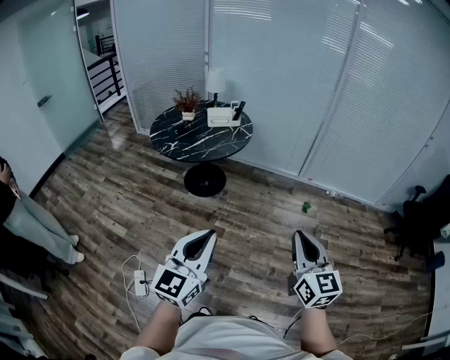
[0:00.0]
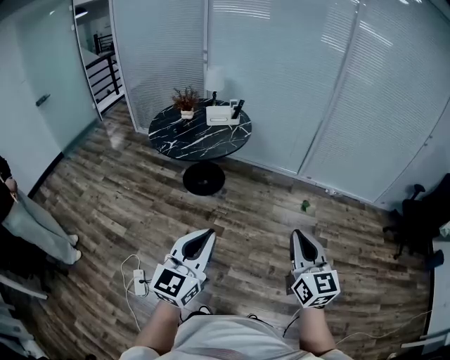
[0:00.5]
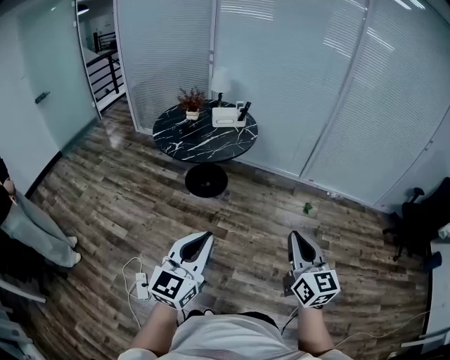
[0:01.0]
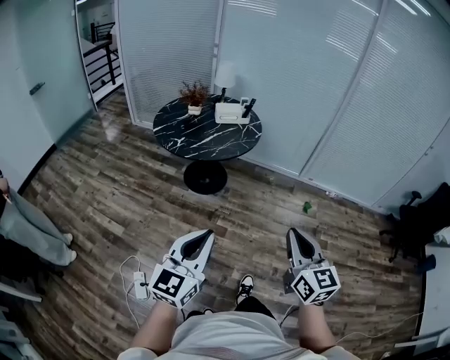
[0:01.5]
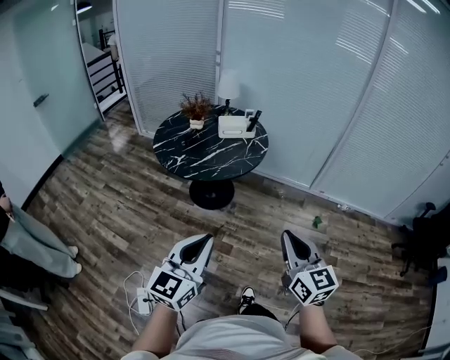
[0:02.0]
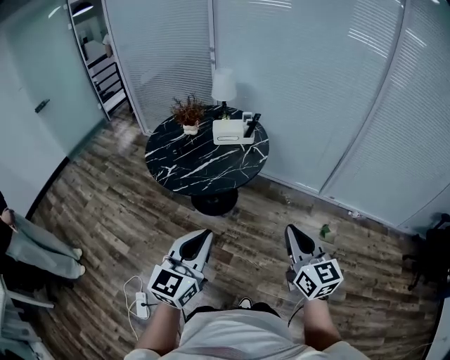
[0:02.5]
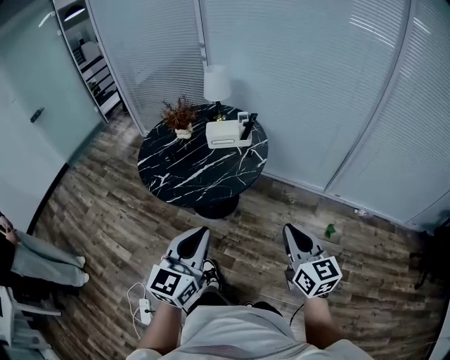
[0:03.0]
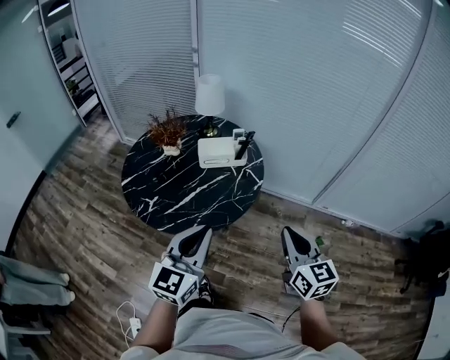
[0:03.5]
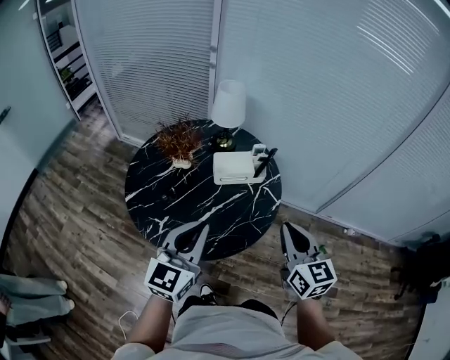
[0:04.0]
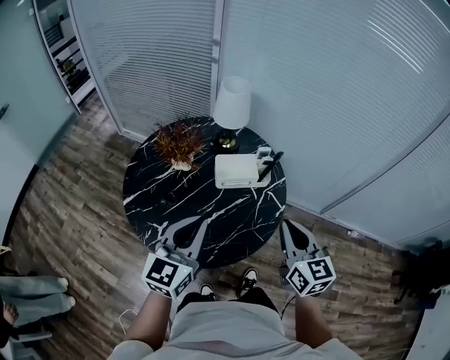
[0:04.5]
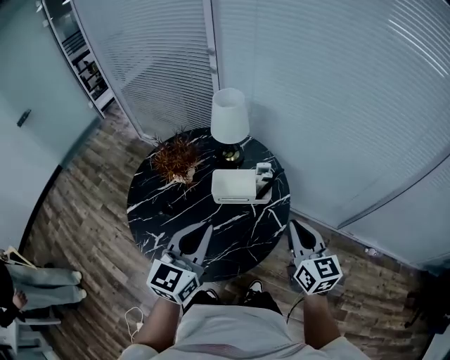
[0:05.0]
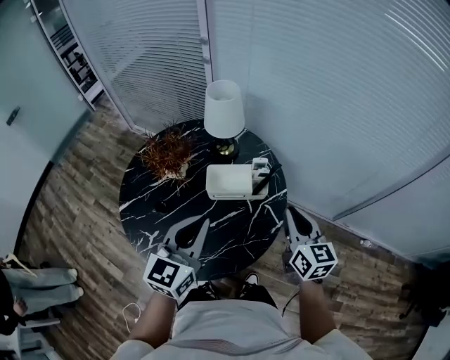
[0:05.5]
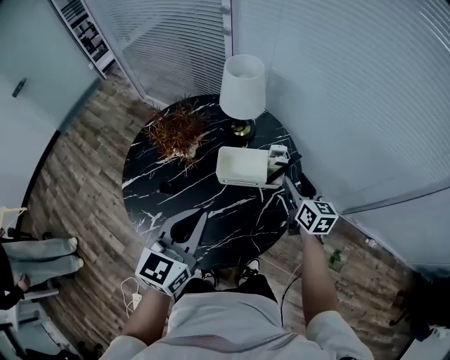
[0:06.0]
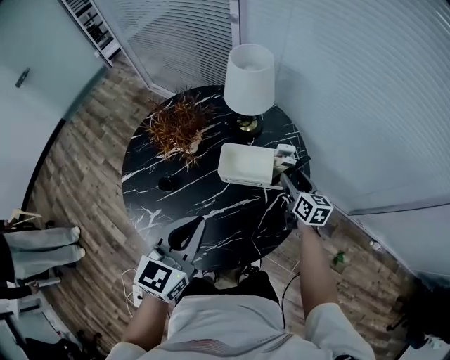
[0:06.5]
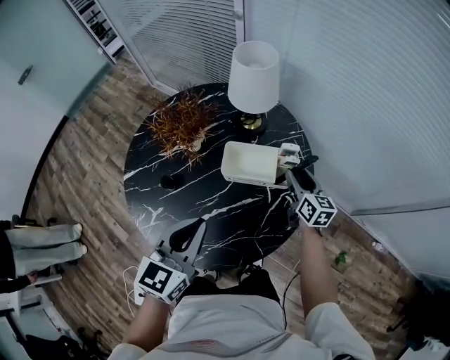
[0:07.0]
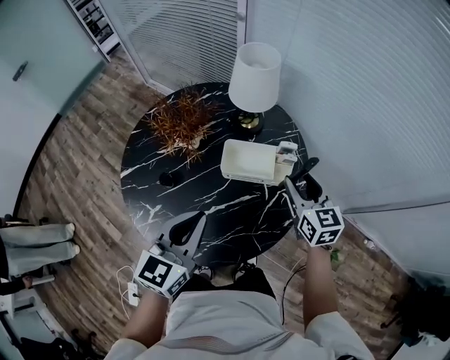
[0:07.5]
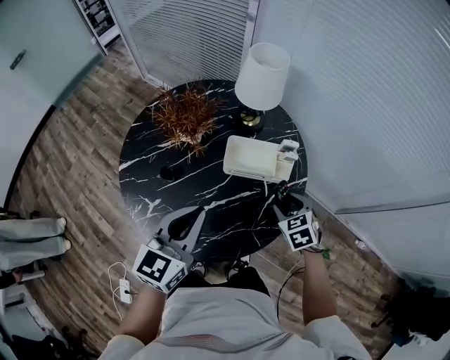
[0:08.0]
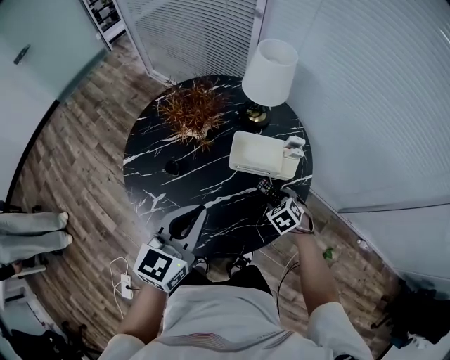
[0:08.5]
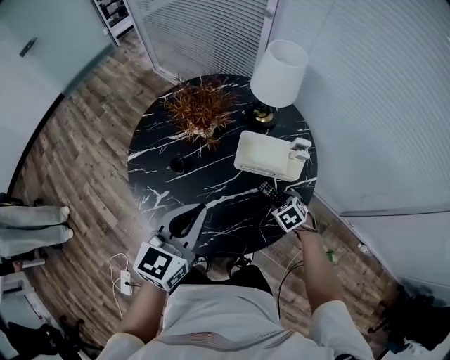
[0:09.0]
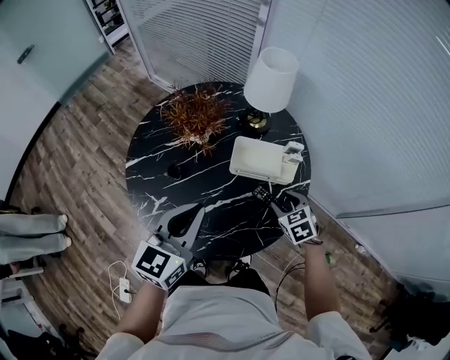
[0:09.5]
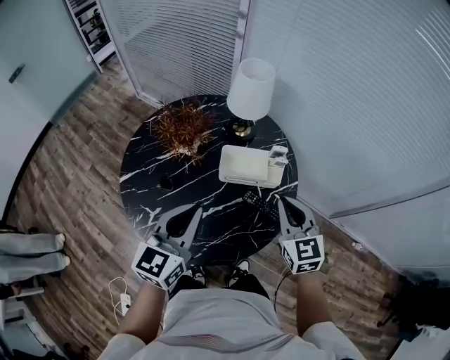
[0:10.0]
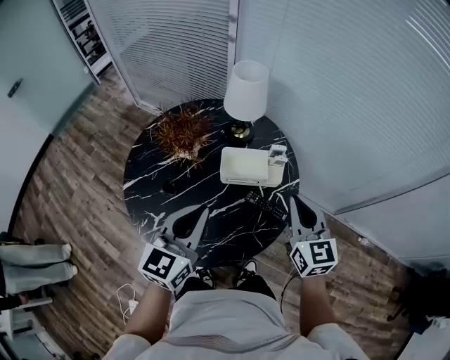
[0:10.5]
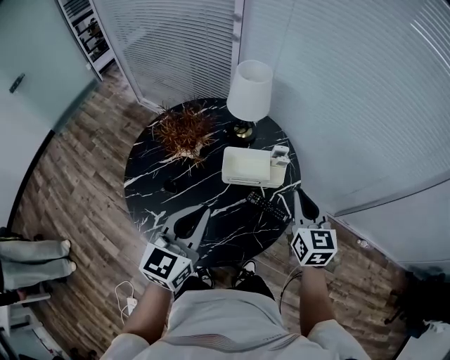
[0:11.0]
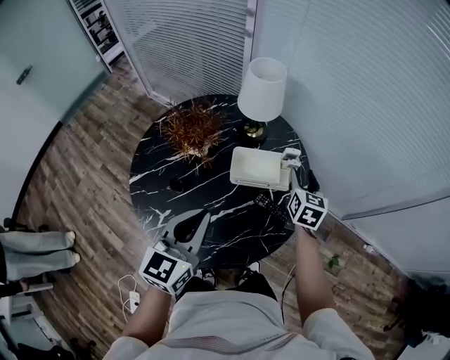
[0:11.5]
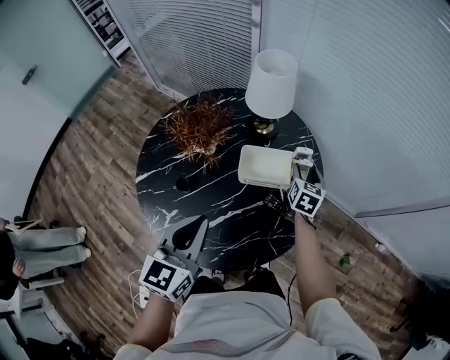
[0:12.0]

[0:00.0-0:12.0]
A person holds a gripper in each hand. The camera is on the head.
0:00.0 to 0:02.0: The grippers both shift forward and to the left by roughly 20 cm.
0:02.0 to 0:04.0: Both grippers are carried forward, approximately 50 cm.
0:04.0 to 0:06.0: The right gripper shifts roughly 35 cm forward and downward, and opens, while the left gripper heads forward, covering roughly 15 cm.
0:06.0 to 0:08.0: The right gripper is displaced backward and downward by roughly 10 cm, and angles its fingers downward, by some 30 degrees.
0:08.0 to 0:10.0: The right gripper shifts some 15 cm upward, tips its fingers upward by approximately 30 degrees, and closes its fingers.
0:10.0 to 0:12.0: The right gripper shifts some 25 cm forward and downward, rotates approximately 40 degrees, and opens its fingers.

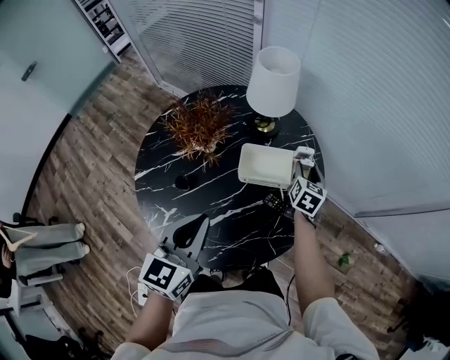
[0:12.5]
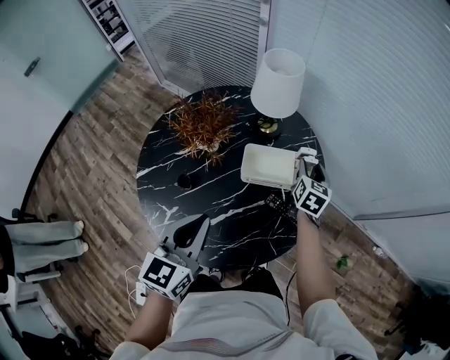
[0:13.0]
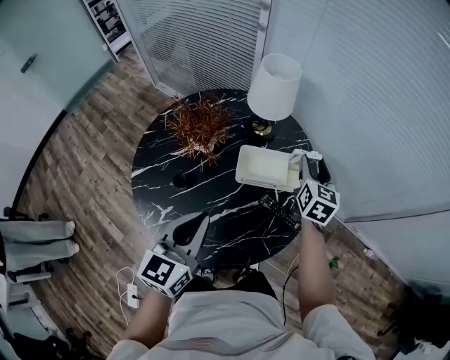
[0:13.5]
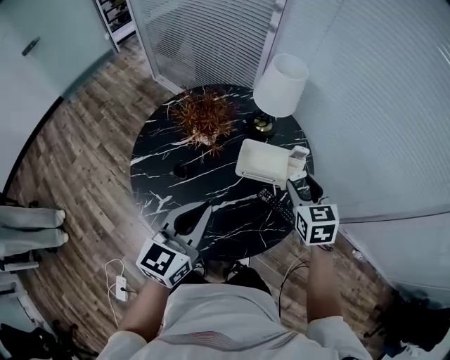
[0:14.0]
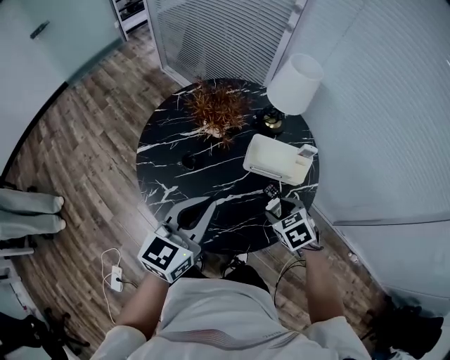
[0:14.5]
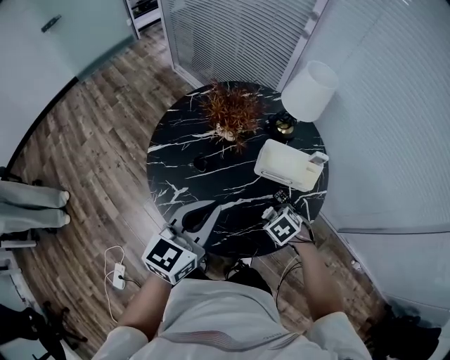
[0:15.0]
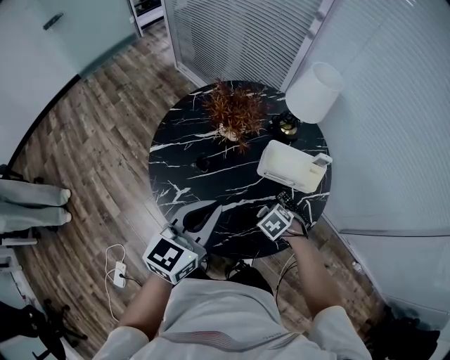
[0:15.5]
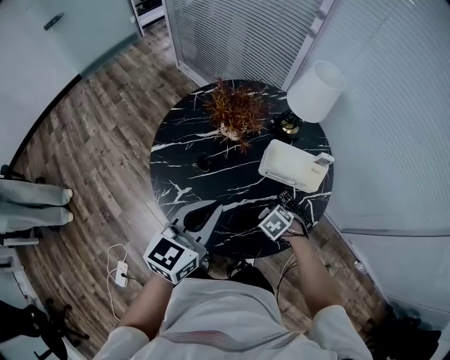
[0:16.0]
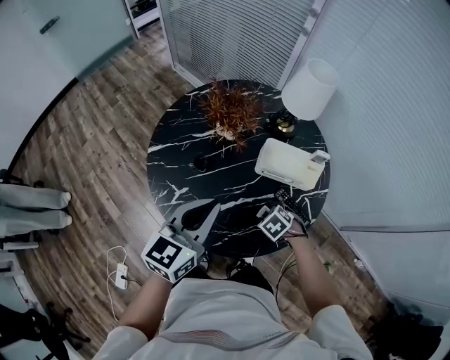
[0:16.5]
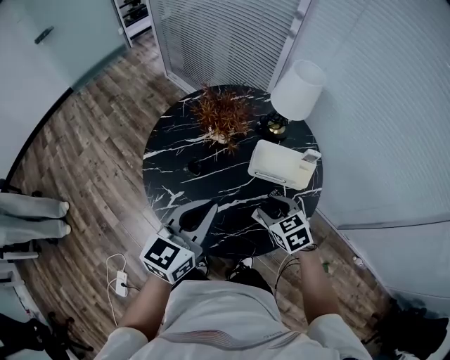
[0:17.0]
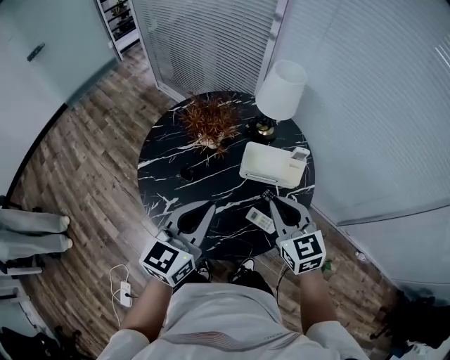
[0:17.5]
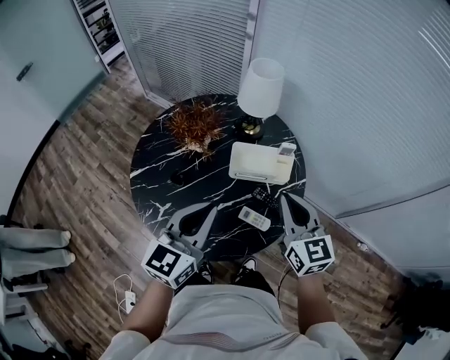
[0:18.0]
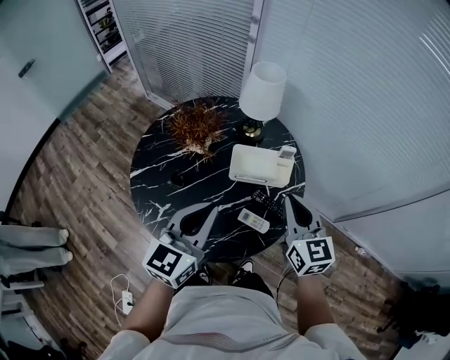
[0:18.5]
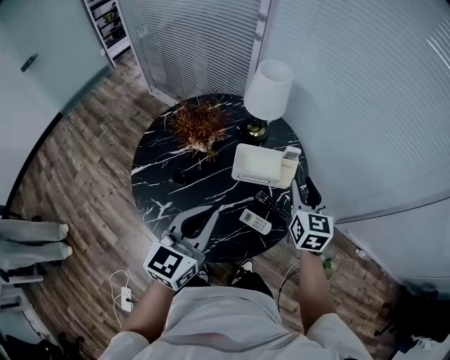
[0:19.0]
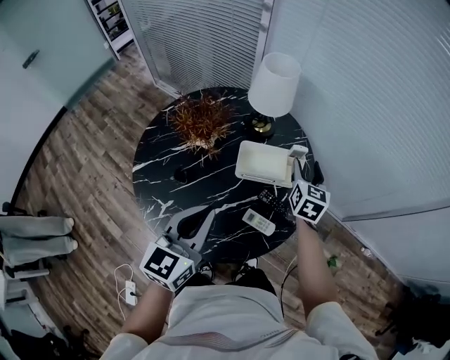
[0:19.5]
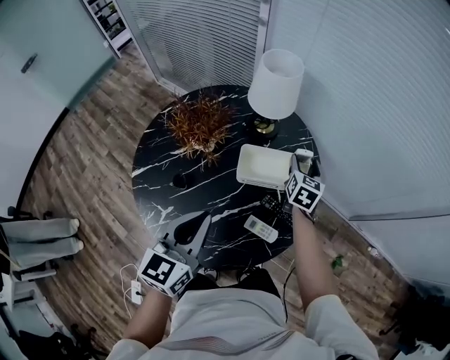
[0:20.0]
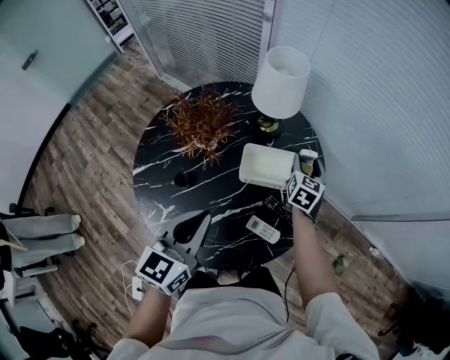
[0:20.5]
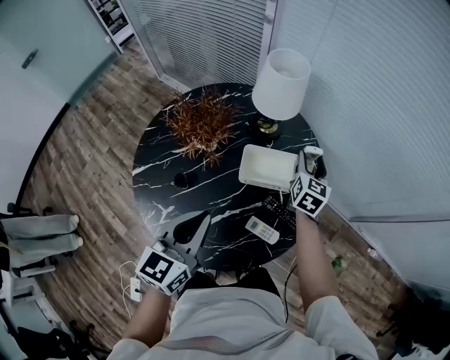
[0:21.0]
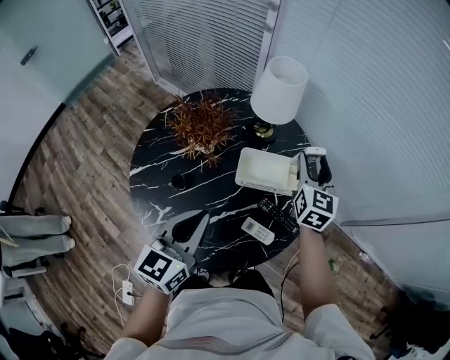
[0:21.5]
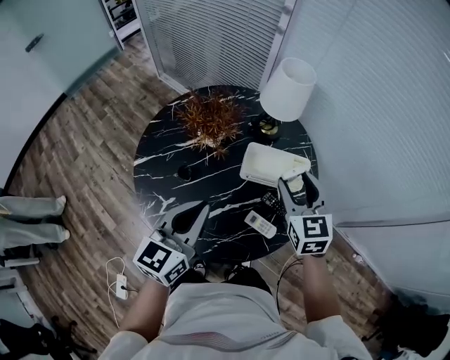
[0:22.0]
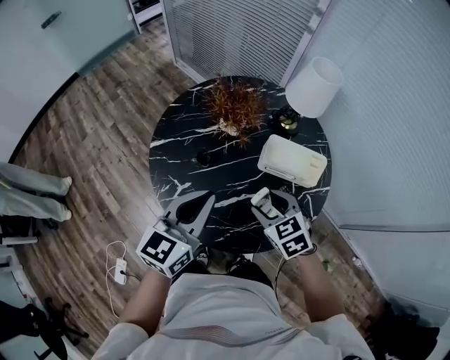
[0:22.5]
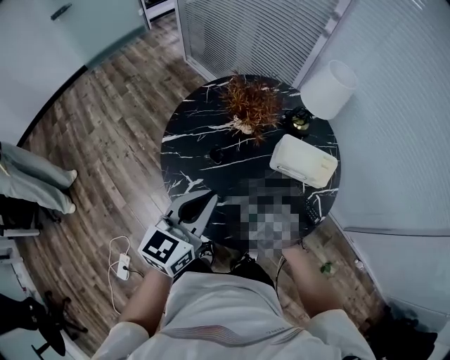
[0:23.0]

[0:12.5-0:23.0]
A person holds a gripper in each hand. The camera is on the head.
0:12.5 to 0:14.5: The right gripper travels backward and to the left by about 25 cm, and tilts its fingers about 30 degrees downward.
0:14.5 to 0:16.5: The right gripper shifts approximately 10 cm downward, and rotates roughly 20 degrees.
0:16.5 to 0:19.0: The left gripper ends up some 5 cm from where it was, while the right gripper is displaced upward by about 25 cm, angles its fingers upward, by about 60 degrees, and closes and opens again.
0:19.0 to 0:21.0: The left gripper ends up about 5 cm from where it was. Meanwhile the right gripper heads forward and downward, covering some 20 cm, and opens.
0:21.0 to 0:23.0: The left gripper changes place by about 10 cm, while the right gripper moves about 40 cm, and tips its fingers downward by approximately 50 degrees.

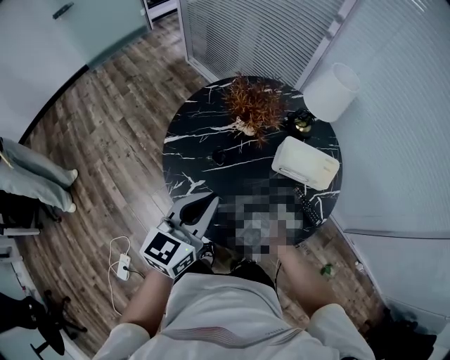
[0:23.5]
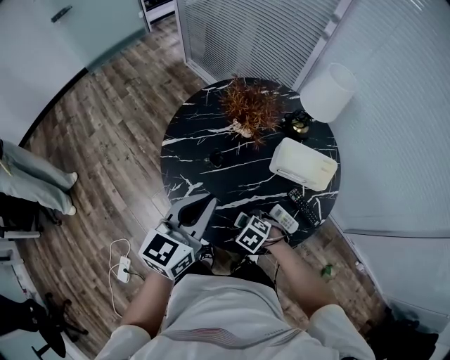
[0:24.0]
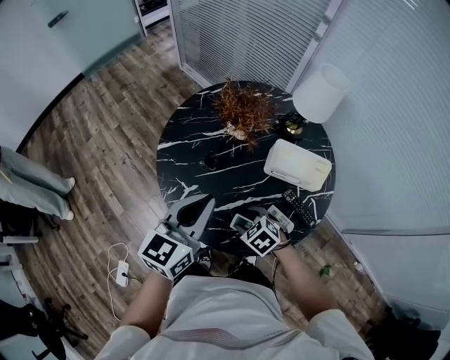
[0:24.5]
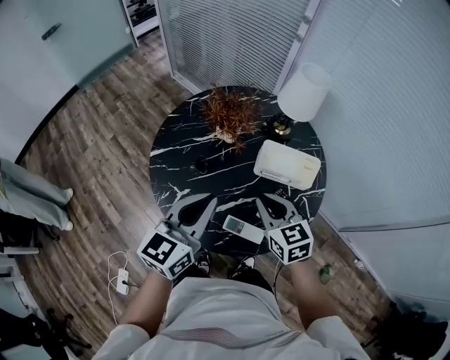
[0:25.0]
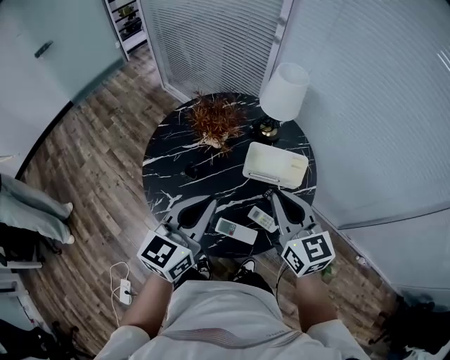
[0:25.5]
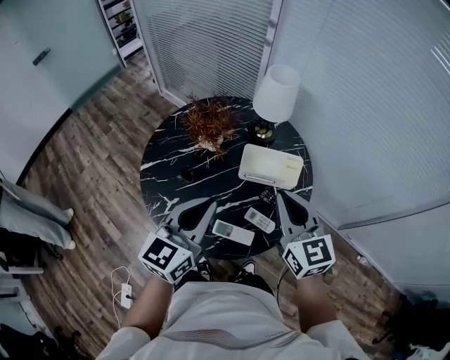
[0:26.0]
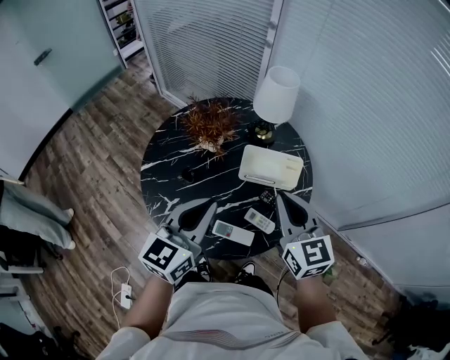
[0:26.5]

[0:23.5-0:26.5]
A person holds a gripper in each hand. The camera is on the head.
0:23.5 to 0:25.0: The right gripper is displaced upward by about 20 cm, tips its fingers upward by some 50 degrees, and closes up. Meanwhile the left gripper shifts by approximately 5 cm.
0:25.0 to 0:26.5: The right gripper travels upward and to the right by some 15 cm, and changes its angle by some 20 degrees; the left gripper heads to the right, covering approximately 5 cm.

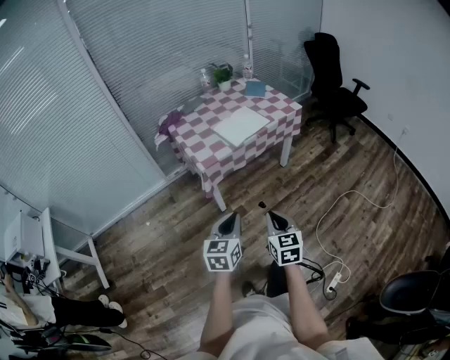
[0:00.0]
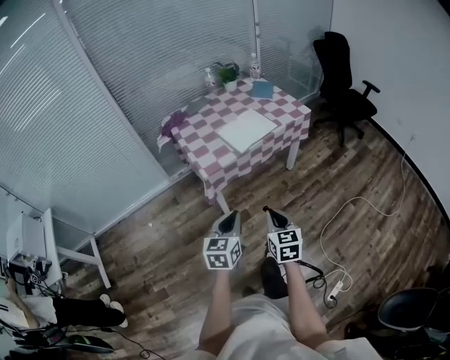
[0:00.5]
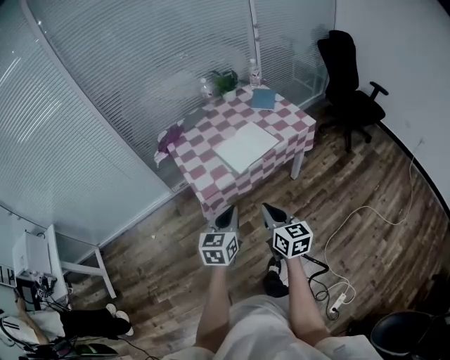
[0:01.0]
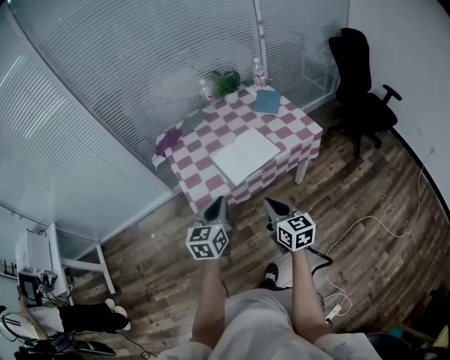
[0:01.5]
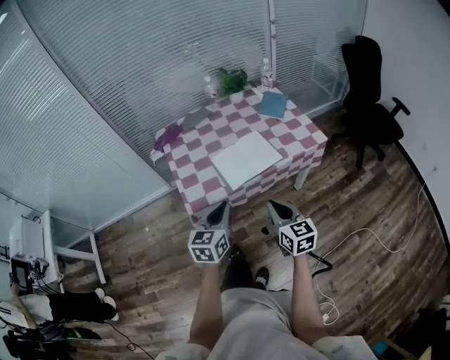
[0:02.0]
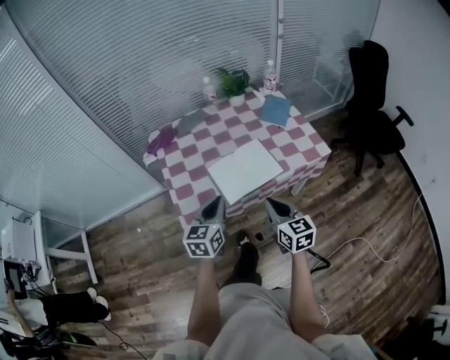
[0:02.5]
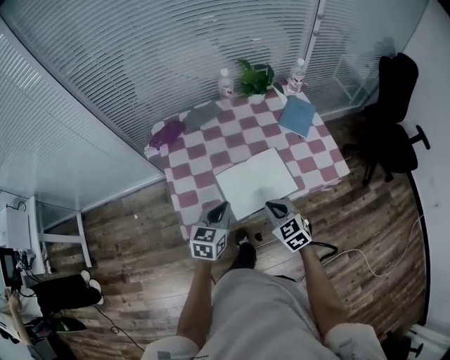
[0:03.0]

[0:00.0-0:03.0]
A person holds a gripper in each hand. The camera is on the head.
0:00.0 to 0:01.5: The two grippers go approximately 30 cm forward. The right gripper changes its angle by approximately 20 degrees.
0:01.5 to 0:03.0: Both grippers move forward and downward, about 25 cm. The right gripper rotates approximately 40 degrees.
